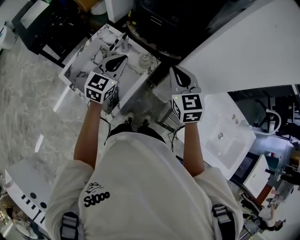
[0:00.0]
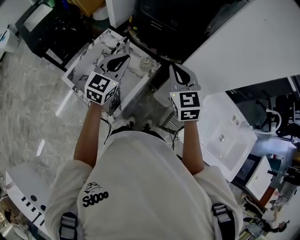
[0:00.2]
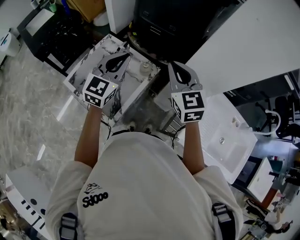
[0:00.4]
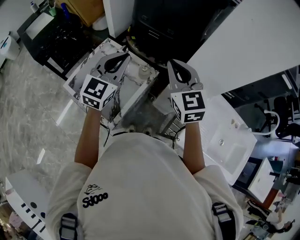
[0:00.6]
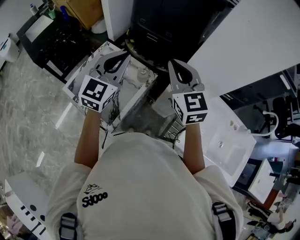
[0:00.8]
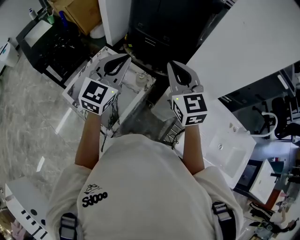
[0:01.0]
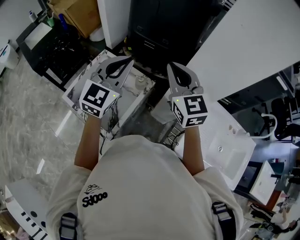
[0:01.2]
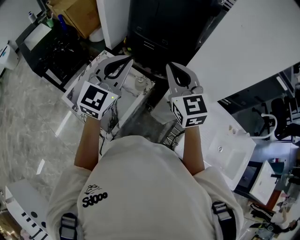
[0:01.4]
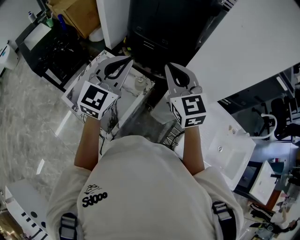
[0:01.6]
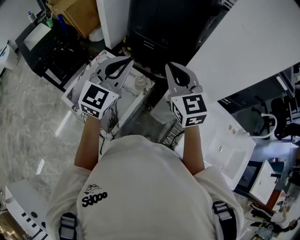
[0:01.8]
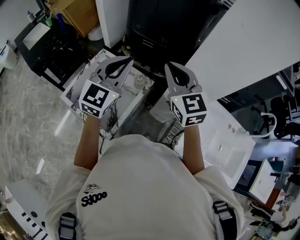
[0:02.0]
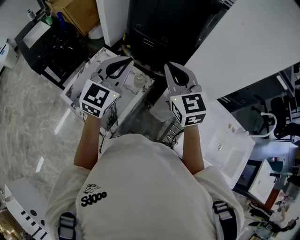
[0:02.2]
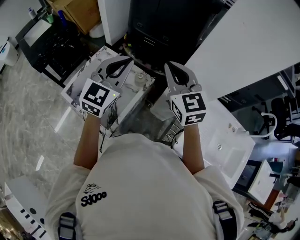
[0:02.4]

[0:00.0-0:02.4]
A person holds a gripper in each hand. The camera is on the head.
0.0 to 1.2 s: Both grippers move upward, roughly 15 cm.
1.2 to 2.4 s: The two grippers keep their place.

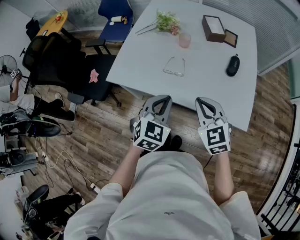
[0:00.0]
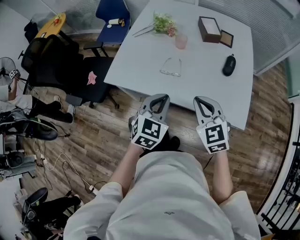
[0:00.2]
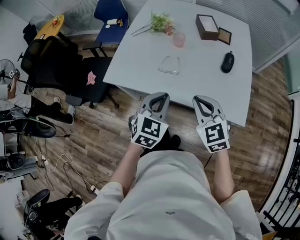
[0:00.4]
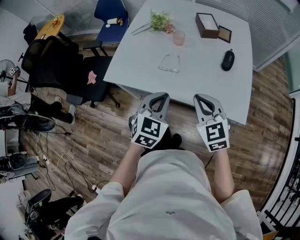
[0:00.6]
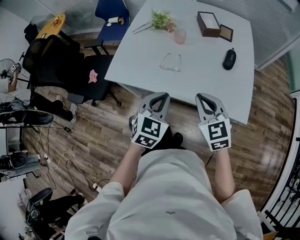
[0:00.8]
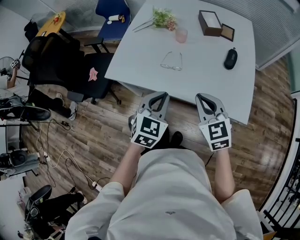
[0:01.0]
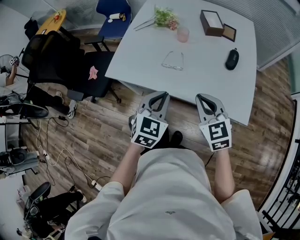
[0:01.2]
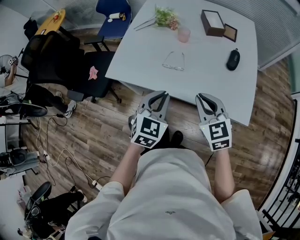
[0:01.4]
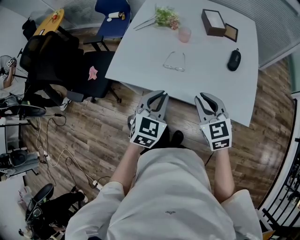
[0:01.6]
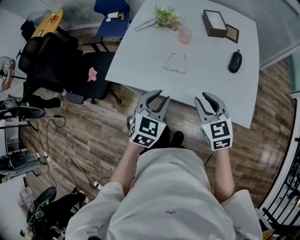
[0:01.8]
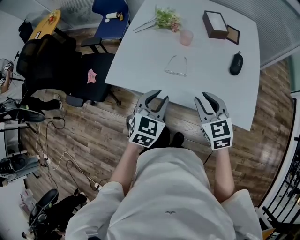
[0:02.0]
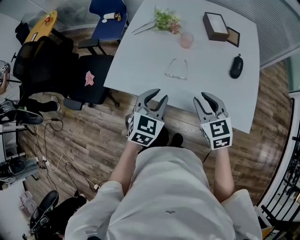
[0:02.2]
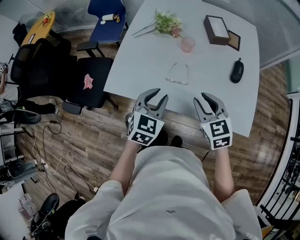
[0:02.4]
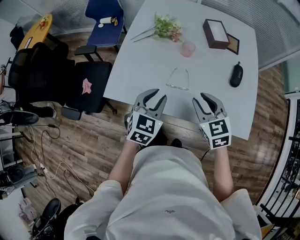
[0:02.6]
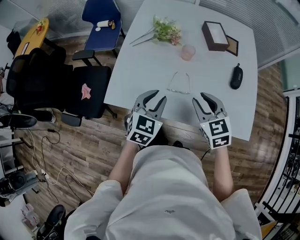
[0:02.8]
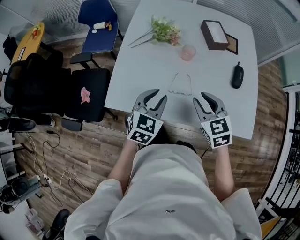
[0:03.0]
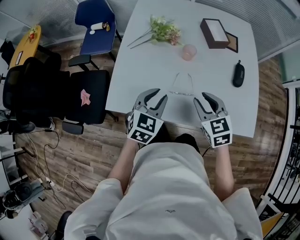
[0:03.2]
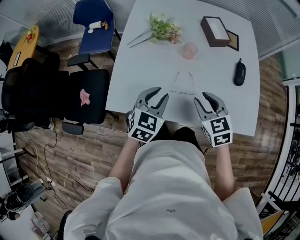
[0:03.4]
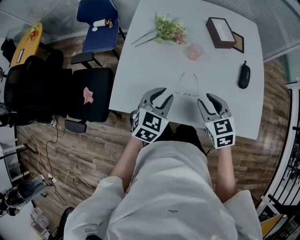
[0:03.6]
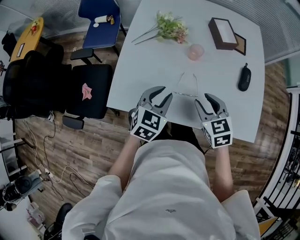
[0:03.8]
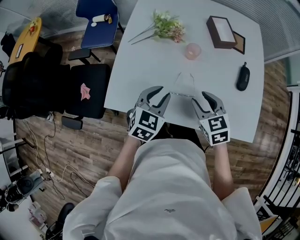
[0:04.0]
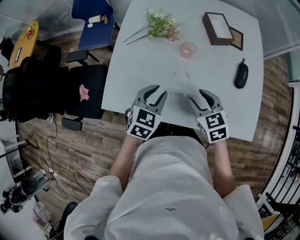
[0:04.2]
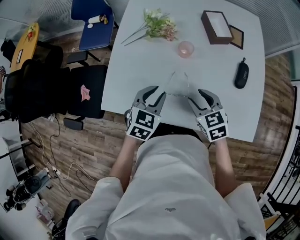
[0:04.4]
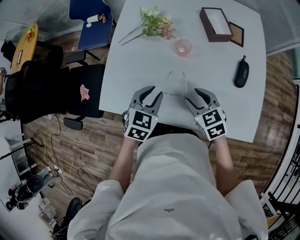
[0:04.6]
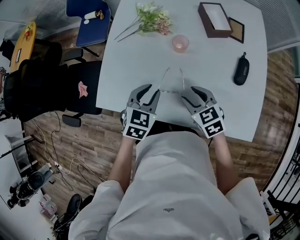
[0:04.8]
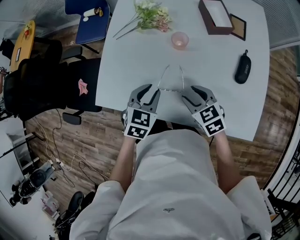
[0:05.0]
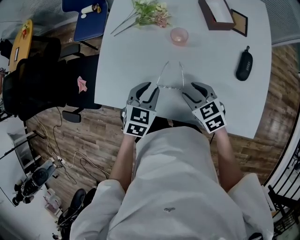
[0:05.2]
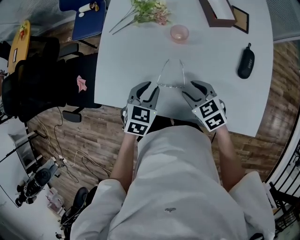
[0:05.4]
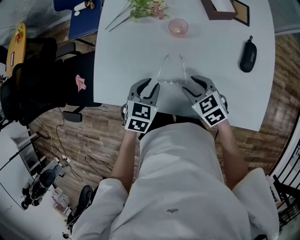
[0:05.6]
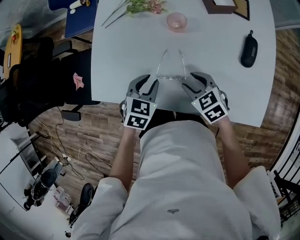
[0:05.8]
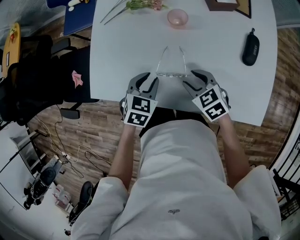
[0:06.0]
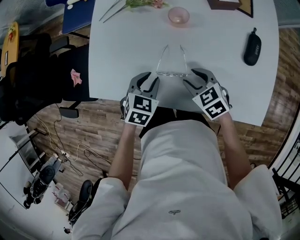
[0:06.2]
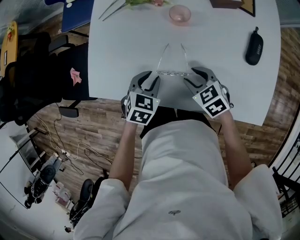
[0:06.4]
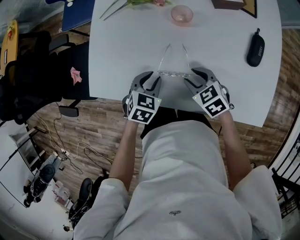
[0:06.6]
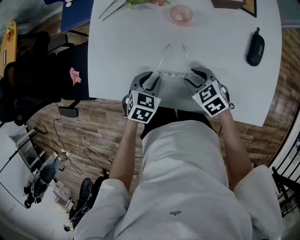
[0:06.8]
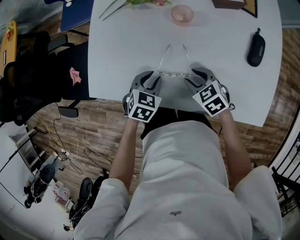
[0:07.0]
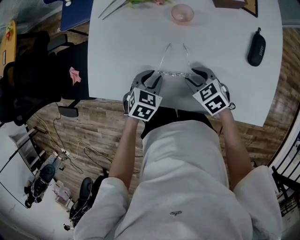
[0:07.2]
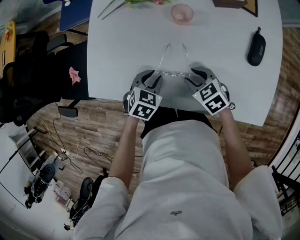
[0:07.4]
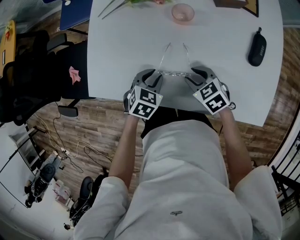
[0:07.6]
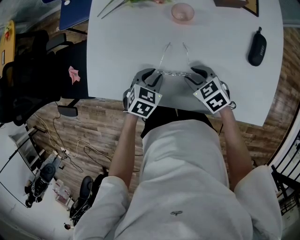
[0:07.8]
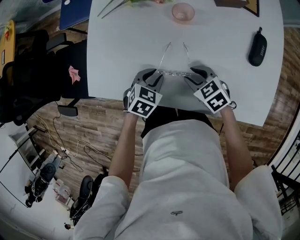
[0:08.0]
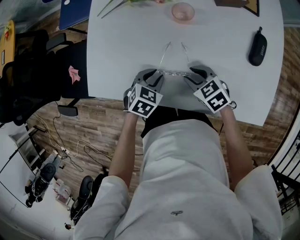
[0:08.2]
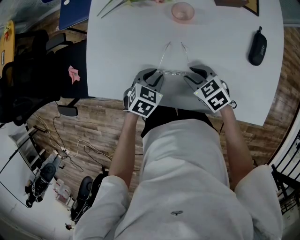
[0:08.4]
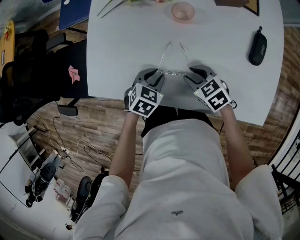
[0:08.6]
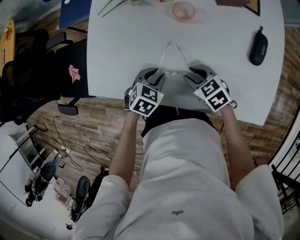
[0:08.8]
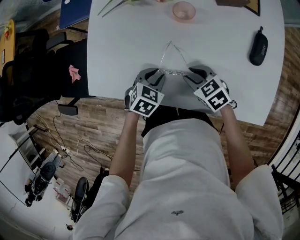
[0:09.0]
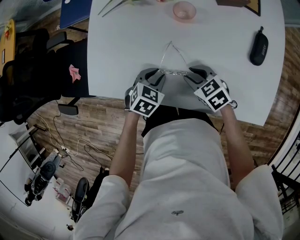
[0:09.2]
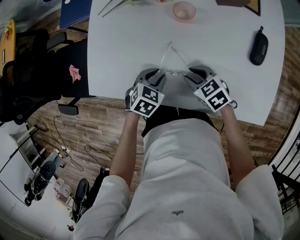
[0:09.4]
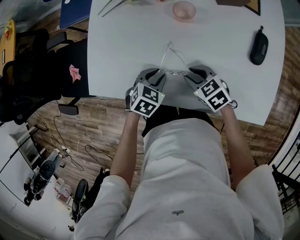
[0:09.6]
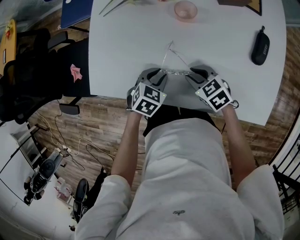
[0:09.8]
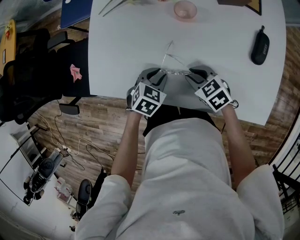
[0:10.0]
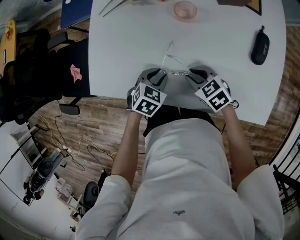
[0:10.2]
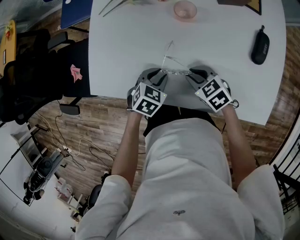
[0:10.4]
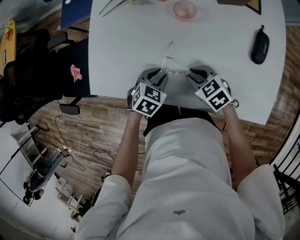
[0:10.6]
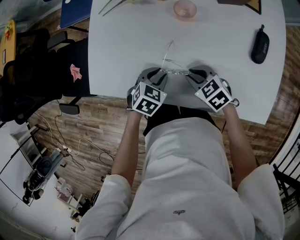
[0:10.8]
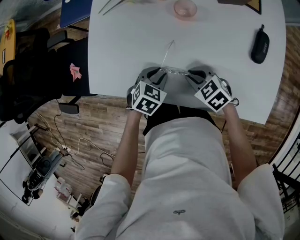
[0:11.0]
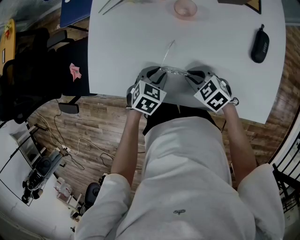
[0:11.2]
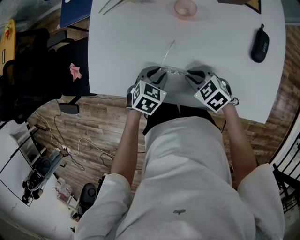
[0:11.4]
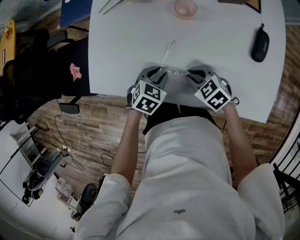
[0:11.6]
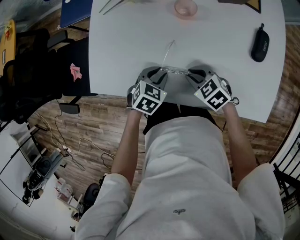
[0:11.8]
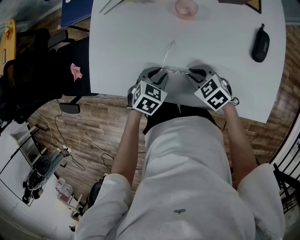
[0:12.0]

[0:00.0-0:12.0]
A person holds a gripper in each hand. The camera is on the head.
0.0 to 1.6 s: The grippers make only small movements.
1.6 to 3.0 s: The grippers both shift forward and to the left by approximately 15 cm. The left gripper opens up.
3.0 to 4.4 s: The right gripper goes approximately 10 cm downward and forward. The left gripper heads forward, covering roughly 5 cm.
4.4 to 6.0 s: Both grippers travel together downward, roughly 10 cm.
6.0 to 7.6 s: The left gripper heads downward, covering some 5 cm.
7.6 to 9.0 s: Both grippers stay about where they are.
9.0 to 10.4 s: Both grippers stay about where they are.
10.4 to 12.0 s: The grippers stay close to where they were, moving slightly.

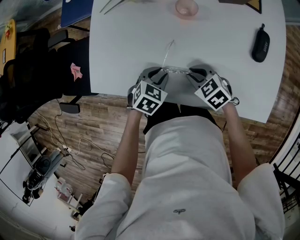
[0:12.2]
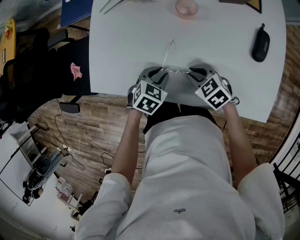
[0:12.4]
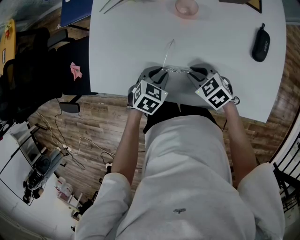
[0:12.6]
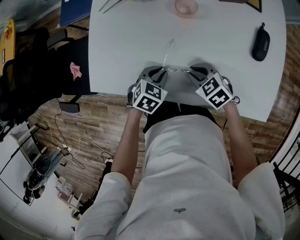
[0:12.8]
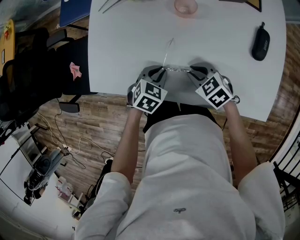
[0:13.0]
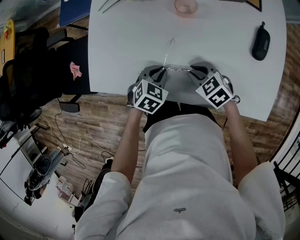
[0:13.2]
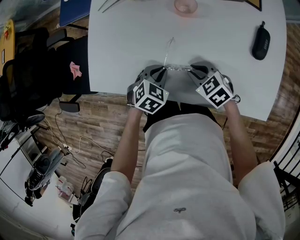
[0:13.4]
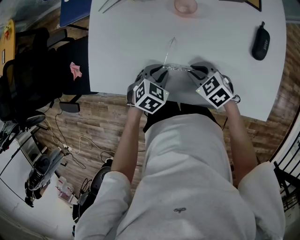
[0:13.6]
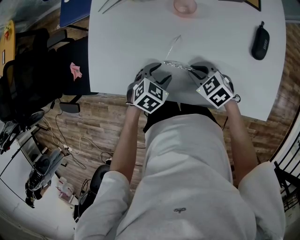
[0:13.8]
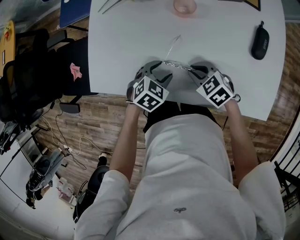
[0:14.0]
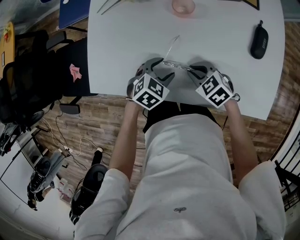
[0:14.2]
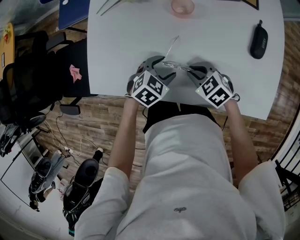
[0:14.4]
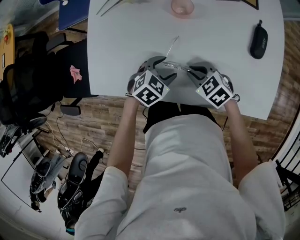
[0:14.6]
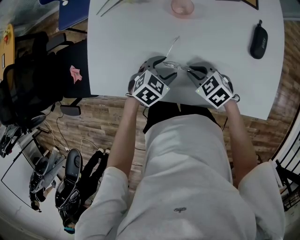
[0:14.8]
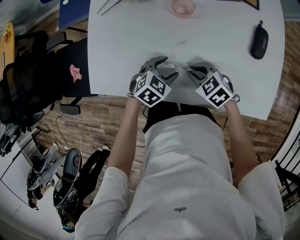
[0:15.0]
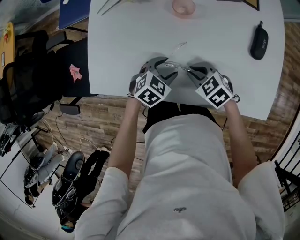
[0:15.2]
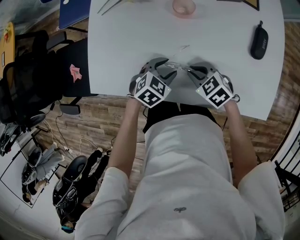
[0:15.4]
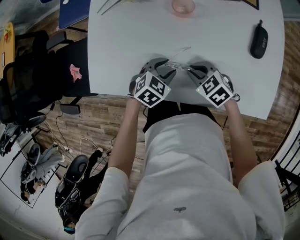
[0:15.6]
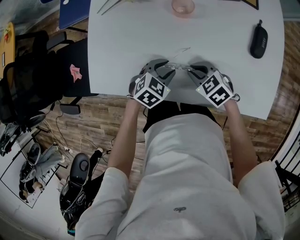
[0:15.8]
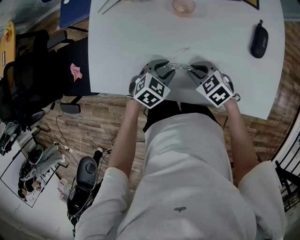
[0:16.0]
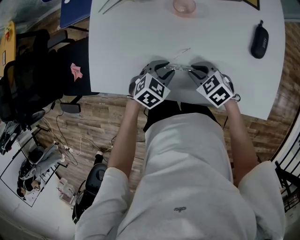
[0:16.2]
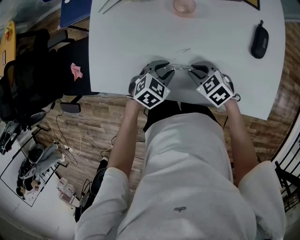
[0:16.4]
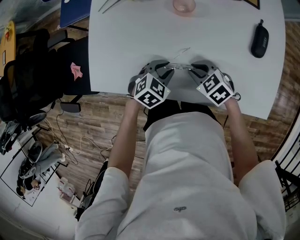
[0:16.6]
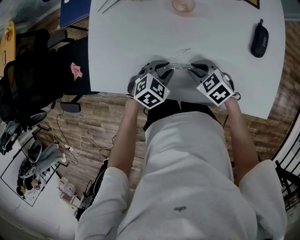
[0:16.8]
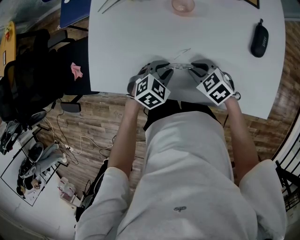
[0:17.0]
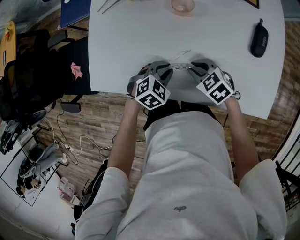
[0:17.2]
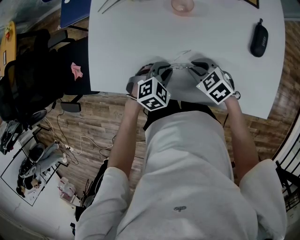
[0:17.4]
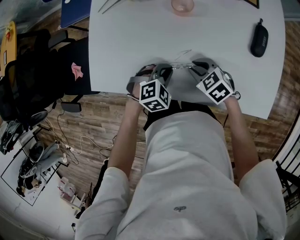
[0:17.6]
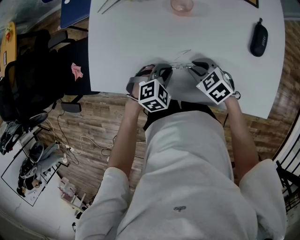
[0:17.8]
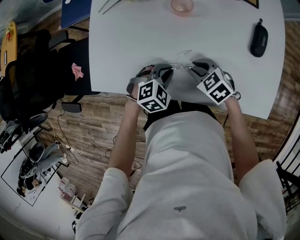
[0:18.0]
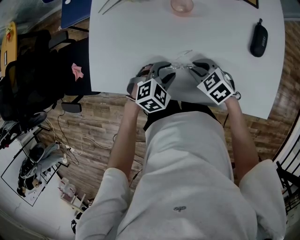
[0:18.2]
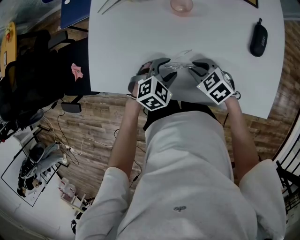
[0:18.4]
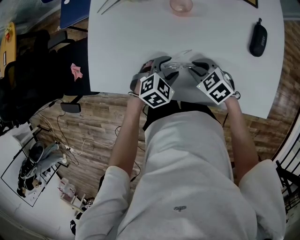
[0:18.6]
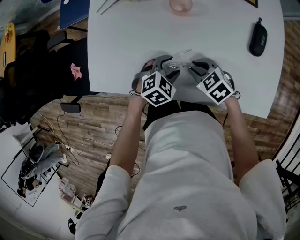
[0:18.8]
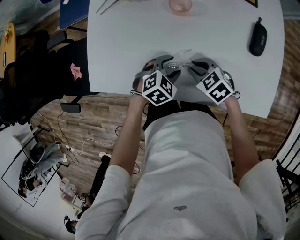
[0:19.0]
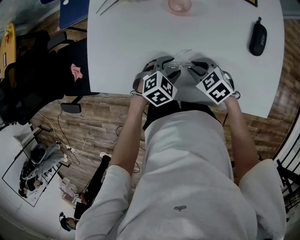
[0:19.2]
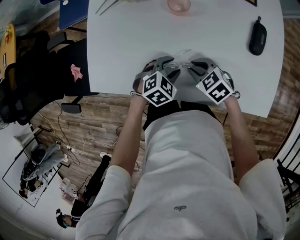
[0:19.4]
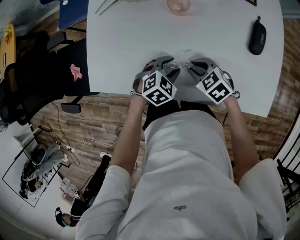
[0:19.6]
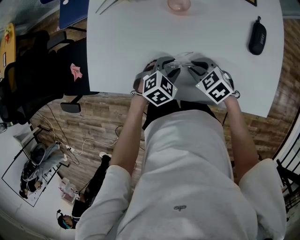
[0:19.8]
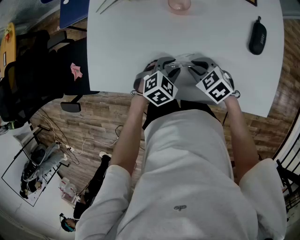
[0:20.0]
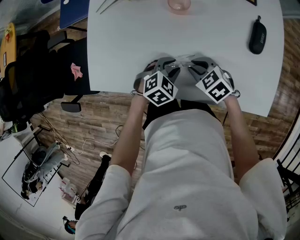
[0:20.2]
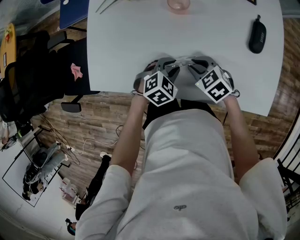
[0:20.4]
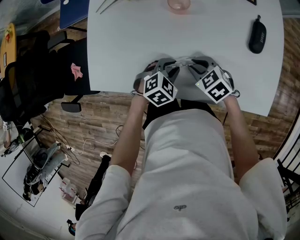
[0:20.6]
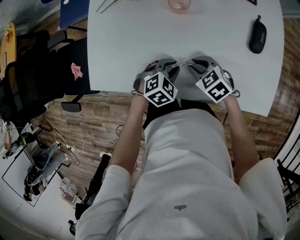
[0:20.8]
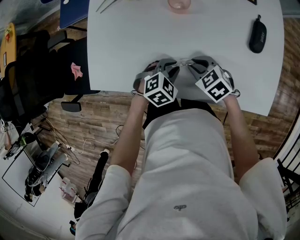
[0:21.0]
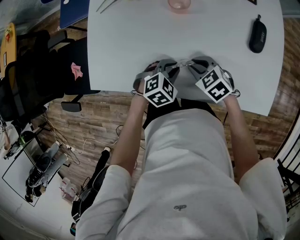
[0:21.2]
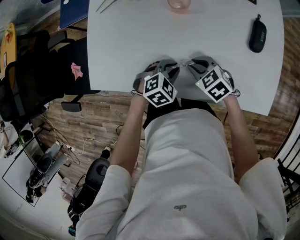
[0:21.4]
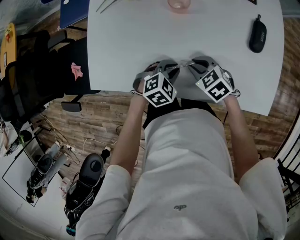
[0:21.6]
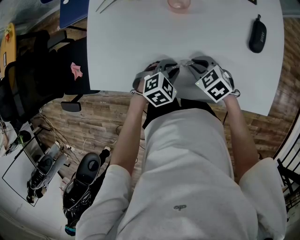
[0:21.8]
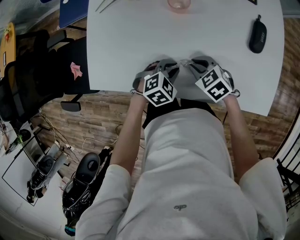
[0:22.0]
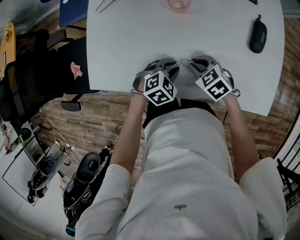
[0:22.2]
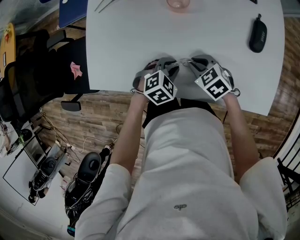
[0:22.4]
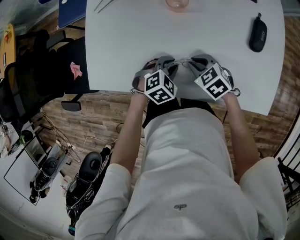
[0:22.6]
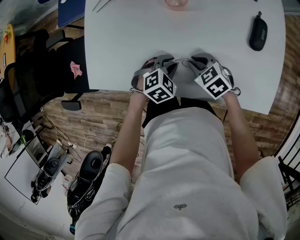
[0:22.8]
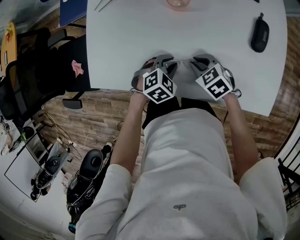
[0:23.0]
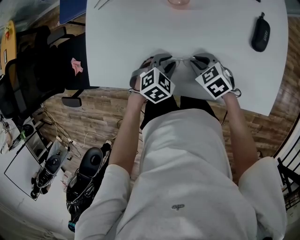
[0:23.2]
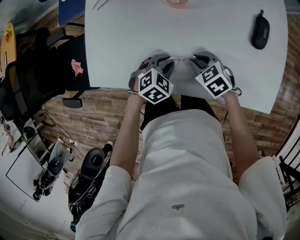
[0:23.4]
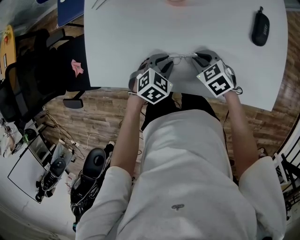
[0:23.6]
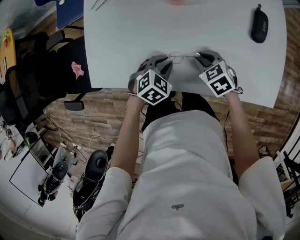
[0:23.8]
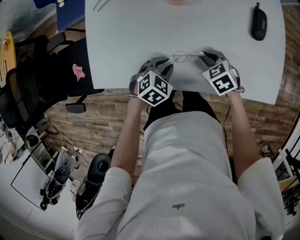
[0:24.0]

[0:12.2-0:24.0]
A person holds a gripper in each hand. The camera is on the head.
12.2 to 13.6 s: There are only small adjustments of the grippers.
13.6 to 15.2 s: The left gripper opens.
15.2 to 16.6 s: The left gripper closes up.
16.6 to 19.6 s: The grippers stay close to where they were, moving slightly.
19.6 to 21.0 s: The left gripper closes.
21.0 to 22.6 s: Both grippers stay about where they are.
22.6 to 24.0 s: The left gripper ends up about 5 cm from where it was.
